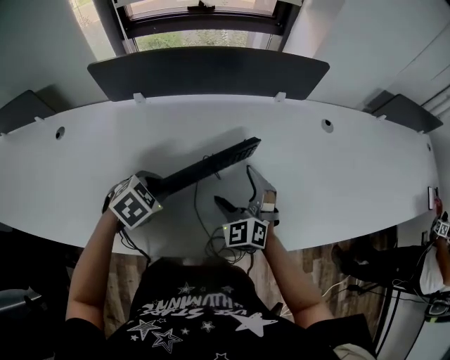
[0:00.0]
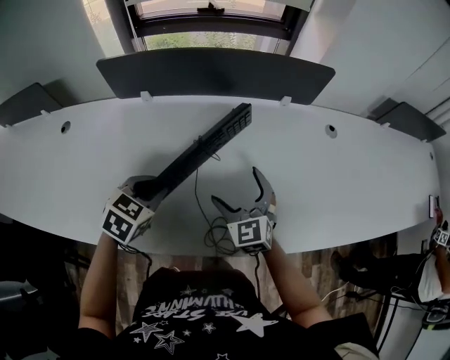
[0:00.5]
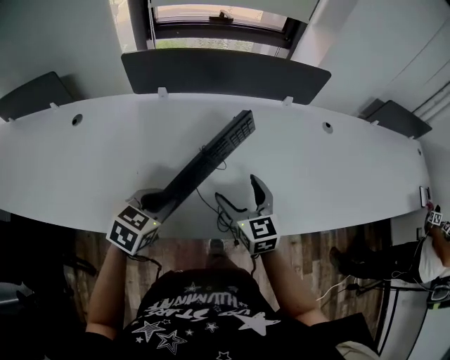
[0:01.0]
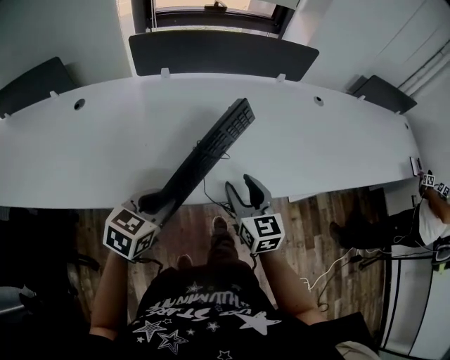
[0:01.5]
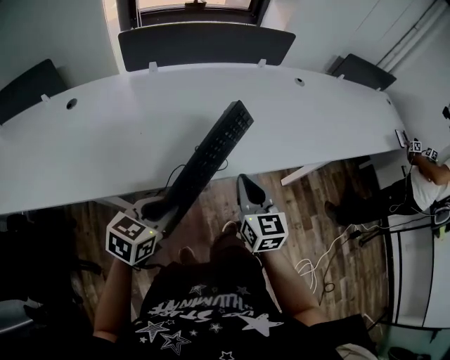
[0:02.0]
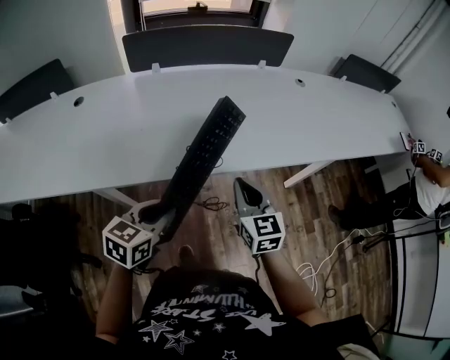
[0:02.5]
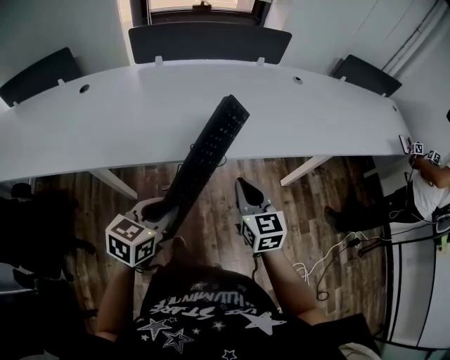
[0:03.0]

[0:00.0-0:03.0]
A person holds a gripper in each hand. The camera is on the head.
0:00.0 to 0:01.5: Both grippers move backward, about 20 cm. The left gripper swivels some 30 degrees. Meanwhile the right gripper rolls clockwise, seen from behind, by some 50 degrees, and closes its fingers.
0:01.5 to 0:03.0: The grippers both shift backward and to the right by roughly 20 cm. The right gripper closes its fingers.

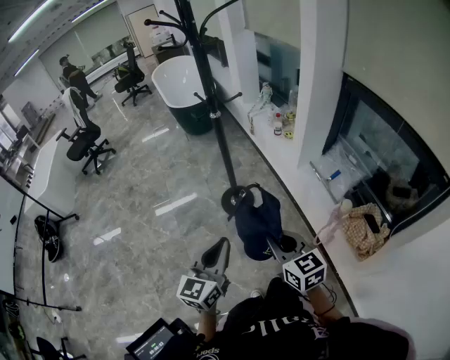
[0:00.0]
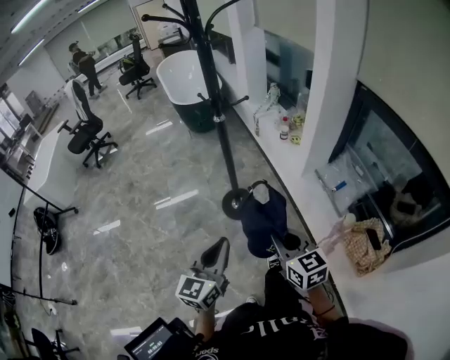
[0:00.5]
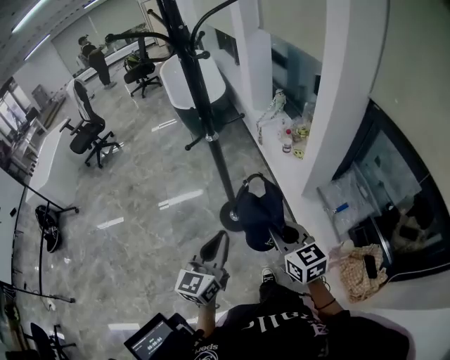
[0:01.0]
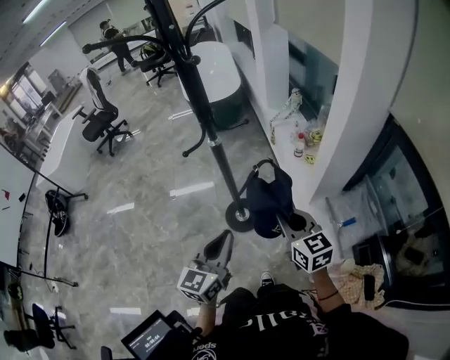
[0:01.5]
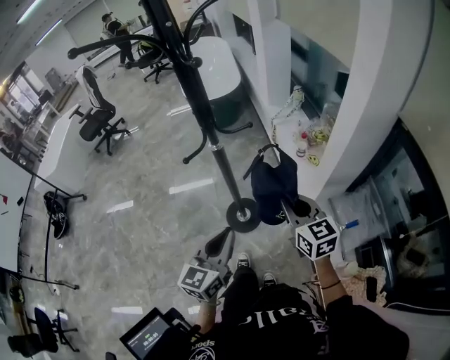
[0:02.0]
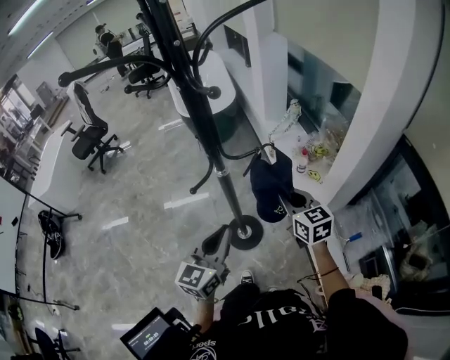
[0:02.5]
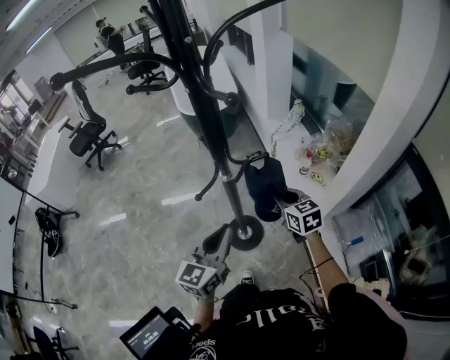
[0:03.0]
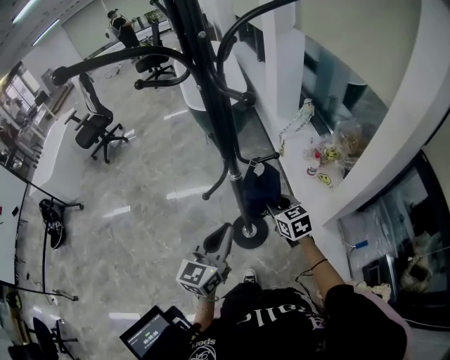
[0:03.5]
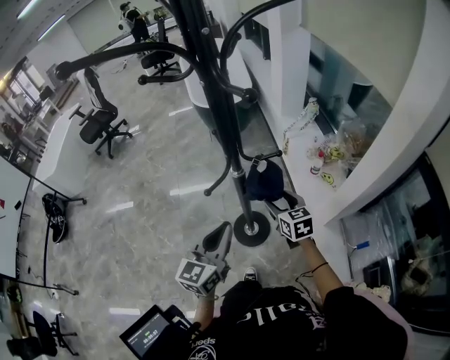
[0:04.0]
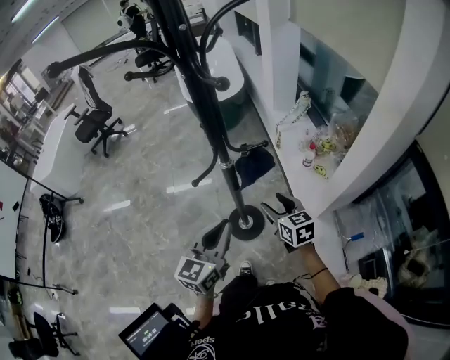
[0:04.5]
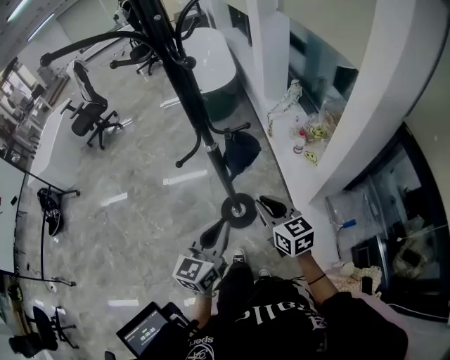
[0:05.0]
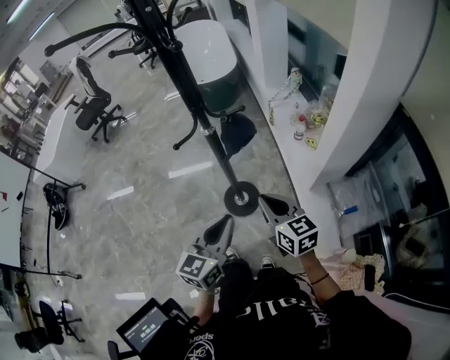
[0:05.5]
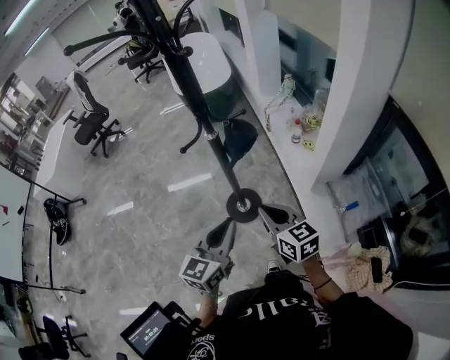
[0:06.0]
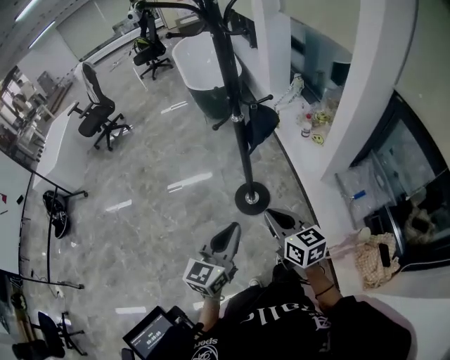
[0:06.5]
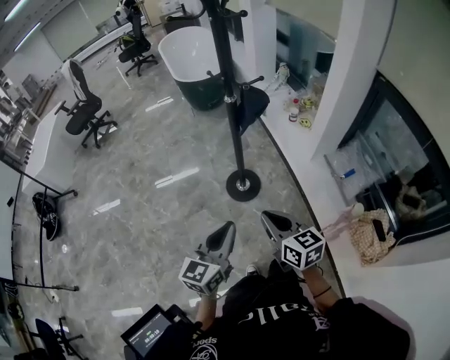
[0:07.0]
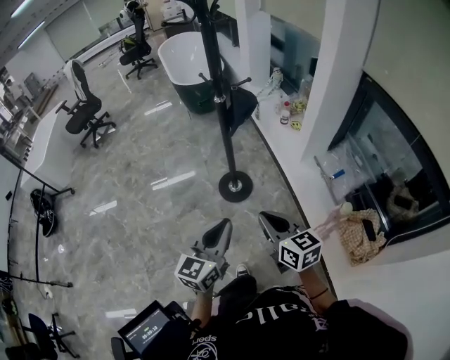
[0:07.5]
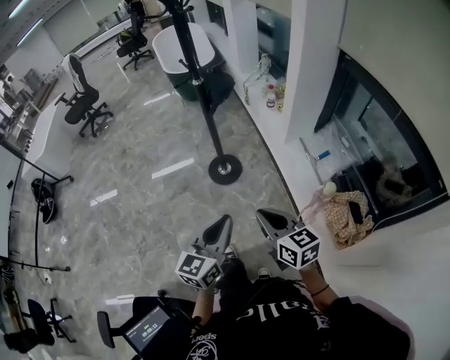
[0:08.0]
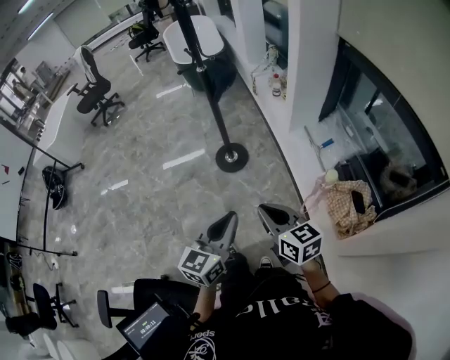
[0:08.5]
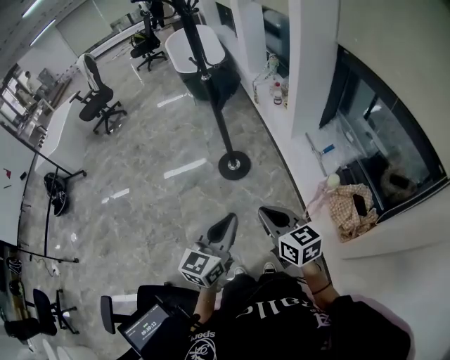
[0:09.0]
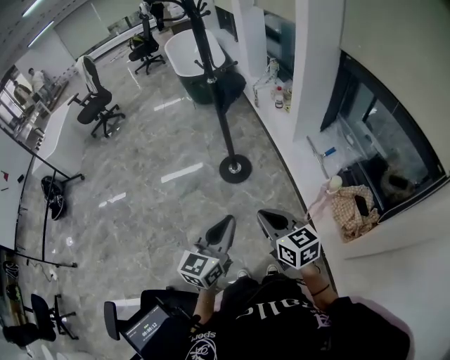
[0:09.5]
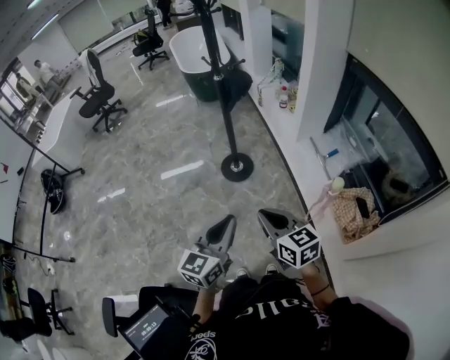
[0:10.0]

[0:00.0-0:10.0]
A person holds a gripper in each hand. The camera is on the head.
0:00.0 to 0:02.0: The two grippers go about 35 cm forward.
0:02.0 to 0:04.0: The left gripper goes approximately 15 cm forward and to the left. Meanwhile the right gripper goes about 20 cm forward, downward and to the left, and opens its fingers.
0:04.0 to 0:06.0: The left gripper goes approximately 20 cm backward and to the right. Meanwhile the right gripper moves backward, some 25 cm, and closes its fingers.
0:06.0 to 0:08.0: The two grippers go some 35 cm backward.
0:08.0 to 0:10.0: Both grippers travel together backward and to the left, about 10 cm.

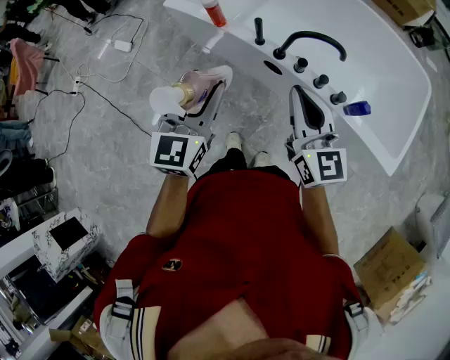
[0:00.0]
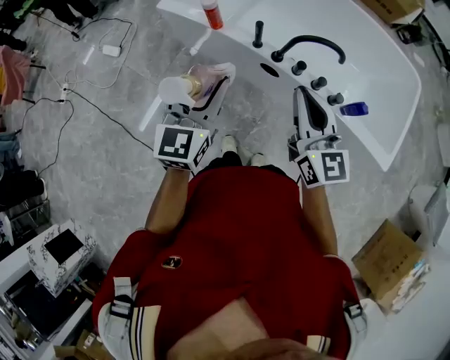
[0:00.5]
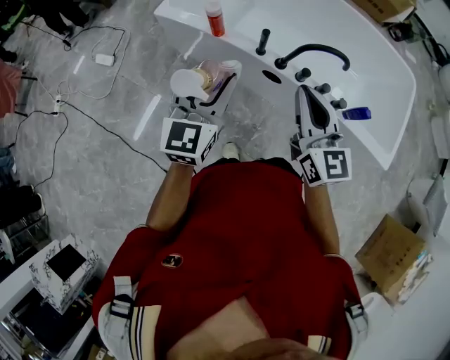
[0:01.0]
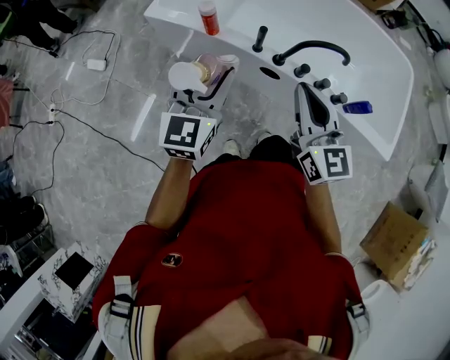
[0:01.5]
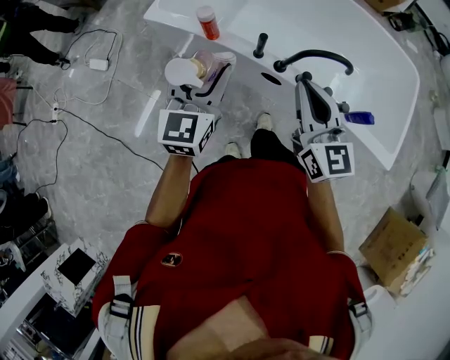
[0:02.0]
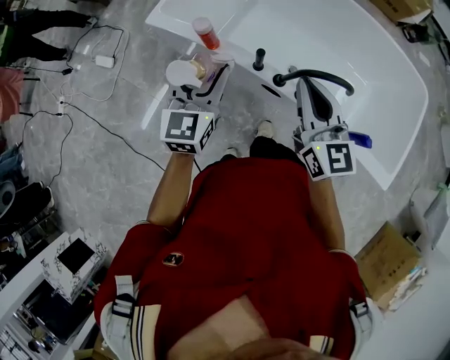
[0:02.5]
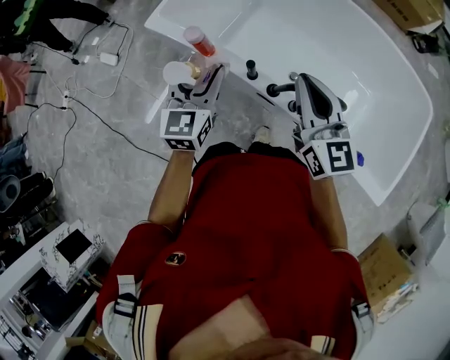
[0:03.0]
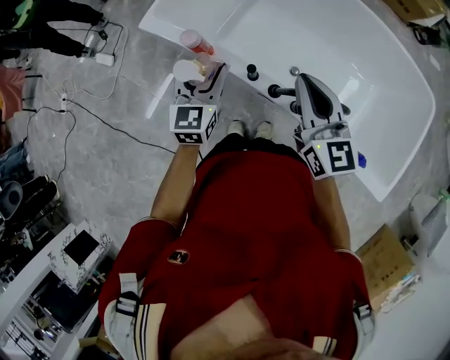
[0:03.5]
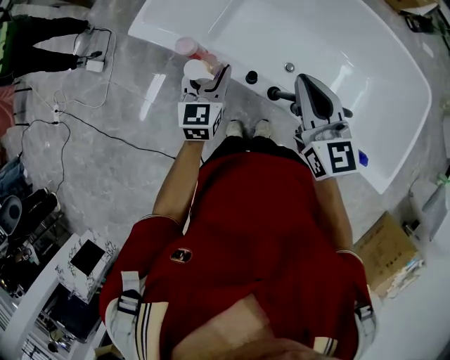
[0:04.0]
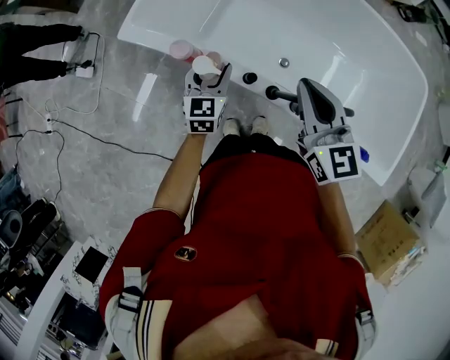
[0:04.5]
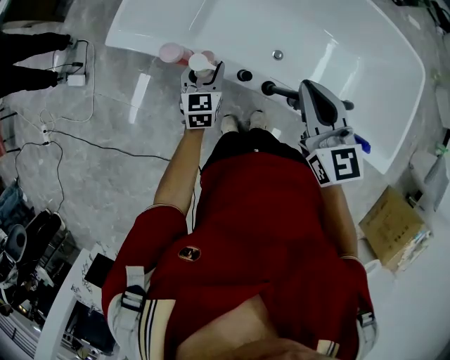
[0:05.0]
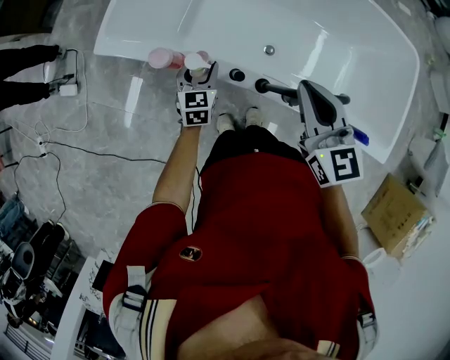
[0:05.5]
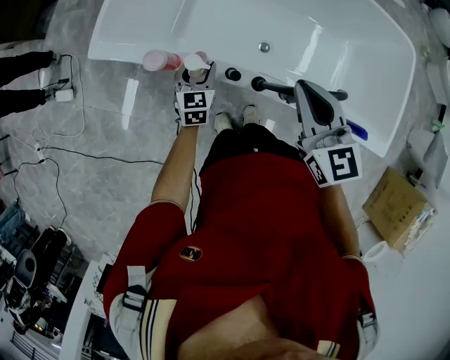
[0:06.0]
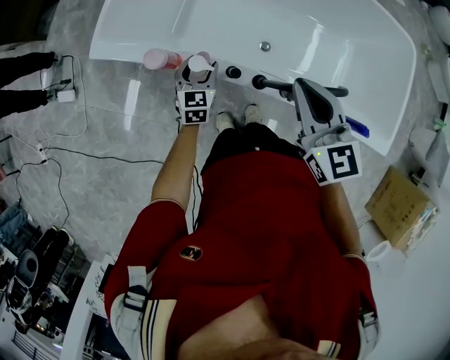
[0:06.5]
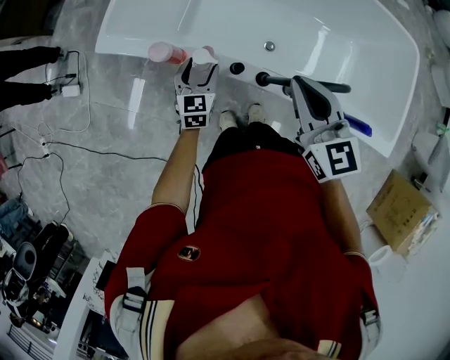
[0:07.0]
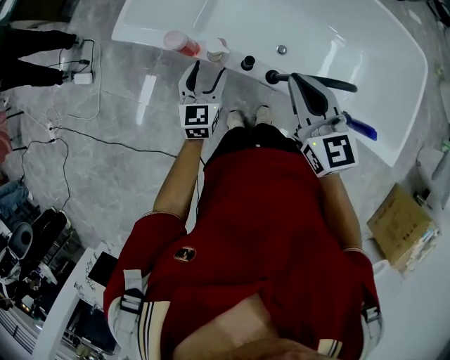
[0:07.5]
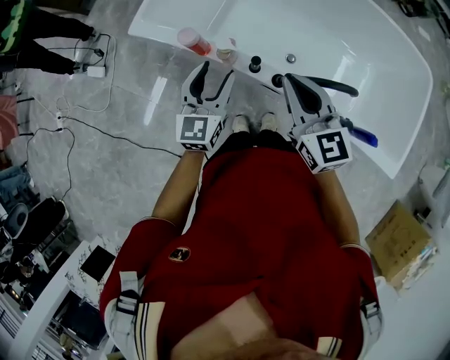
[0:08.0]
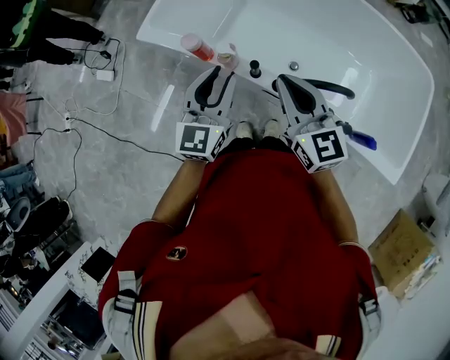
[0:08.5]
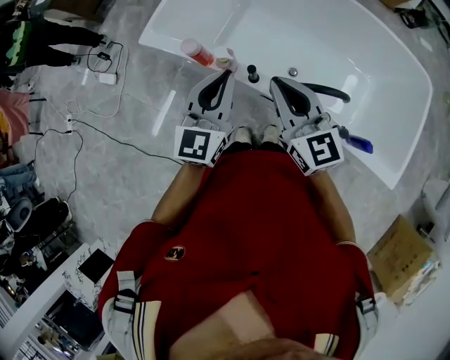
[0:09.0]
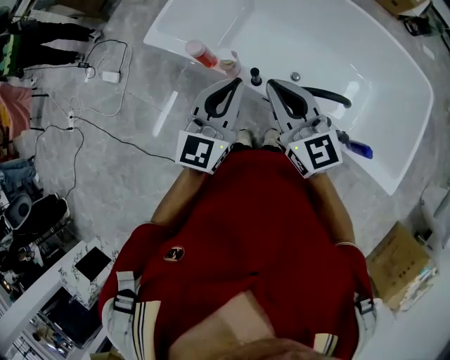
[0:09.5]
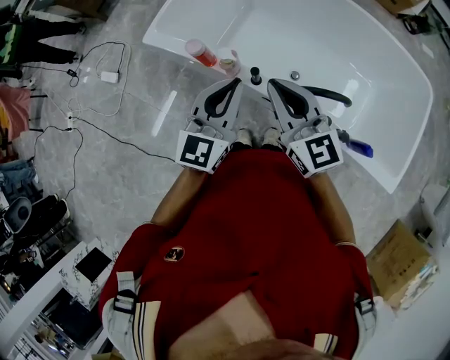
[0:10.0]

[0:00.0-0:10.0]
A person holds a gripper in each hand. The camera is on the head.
0:00.0 to 0:02.0: Both grippers move forward and to the left, roughly 15 cm.
0:02.0 to 0:04.0: The right gripper travels forward by roughly 20 cm. Meanwhile the left gripper is displaced forward and downward by roughly 25 cm.
0:04.0 to 0:06.0: The left gripper goes approximately 15 cm downward.
0:06.0 to 0:08.0: The right gripper travels backward by some 5 cm, while the left gripper moves upward and backward, about 20 cm.
0:08.0 to 0:10.0: The right gripper travels upward by some 5 cm. The left gripper shifts roughly 10 cm upward and to the right, and closes its fingers.

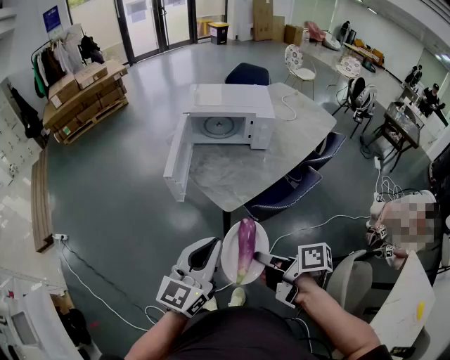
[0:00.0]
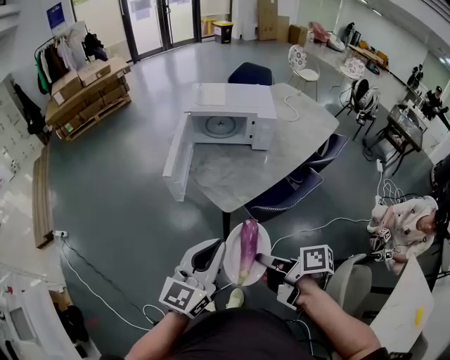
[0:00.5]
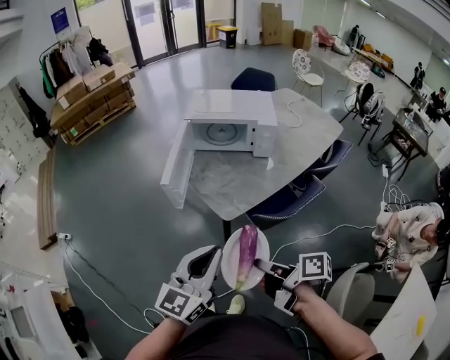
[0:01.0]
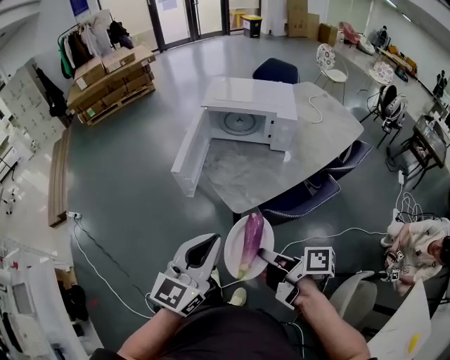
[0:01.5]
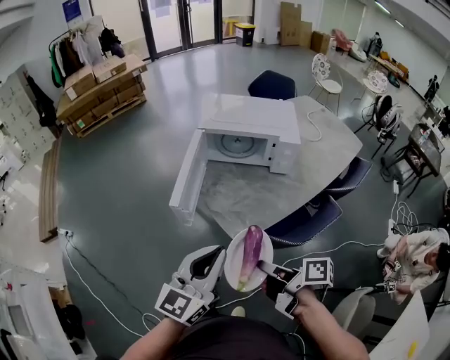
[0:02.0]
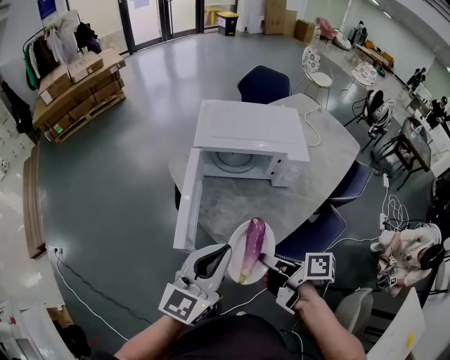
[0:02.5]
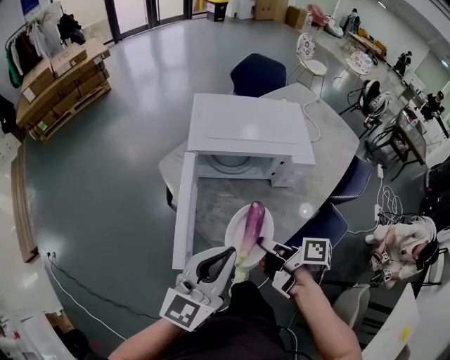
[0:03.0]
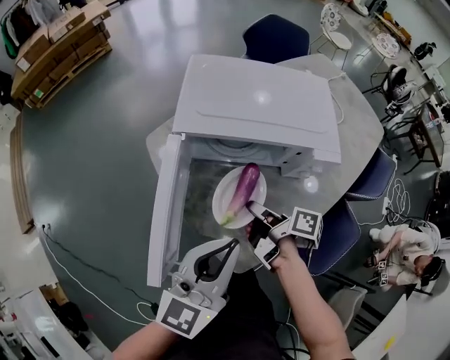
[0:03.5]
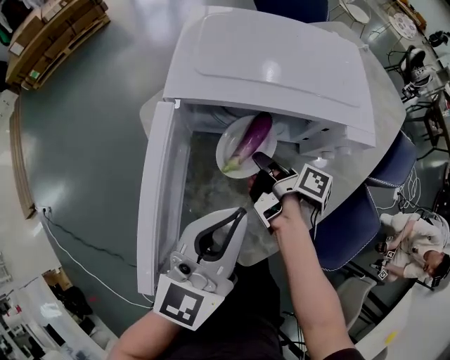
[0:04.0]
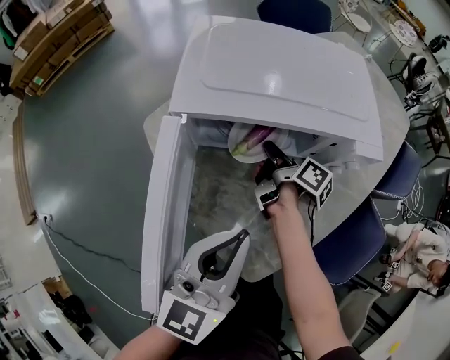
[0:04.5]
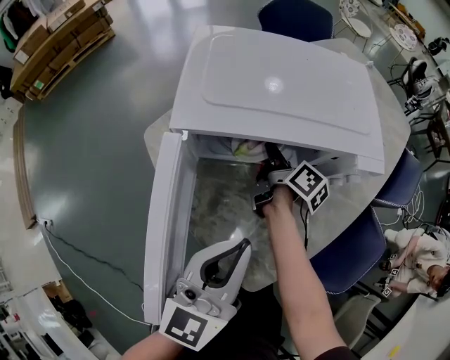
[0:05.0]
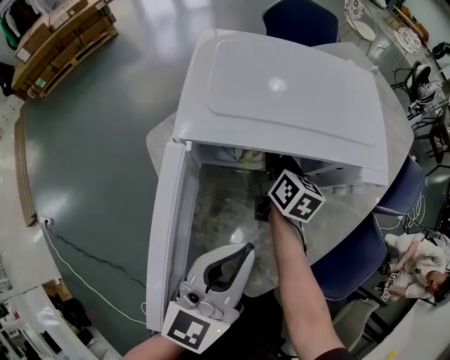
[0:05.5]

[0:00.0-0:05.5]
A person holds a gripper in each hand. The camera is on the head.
0:00.0 to 0:02.0: The grippers both shift forward by approximately 10 cm.
0:02.0 to 0:03.5: The two grippers go some 30 cm forward.
0:03.5 to 0:05.5: The left gripper goes about 10 cm downward and forward, while the right gripper goes roughly 20 cm forward, and rolls counterclockwise, seen from behind, by some 50 degrees.
